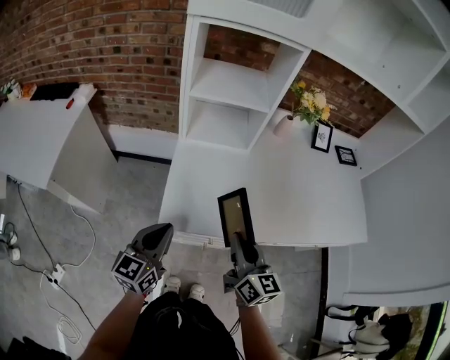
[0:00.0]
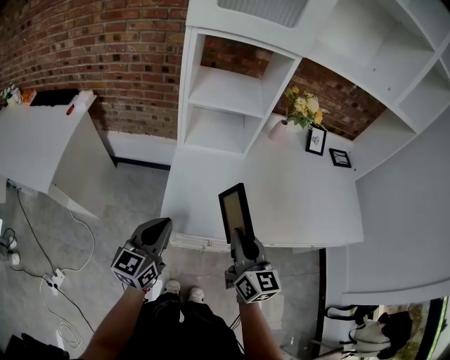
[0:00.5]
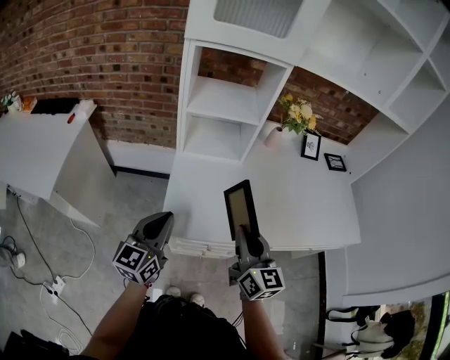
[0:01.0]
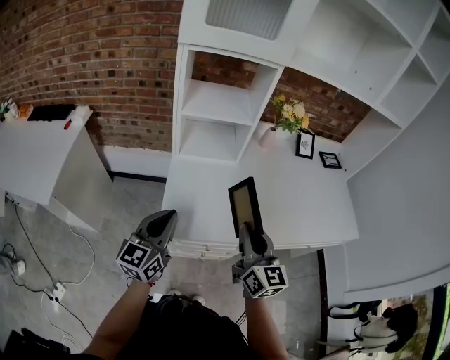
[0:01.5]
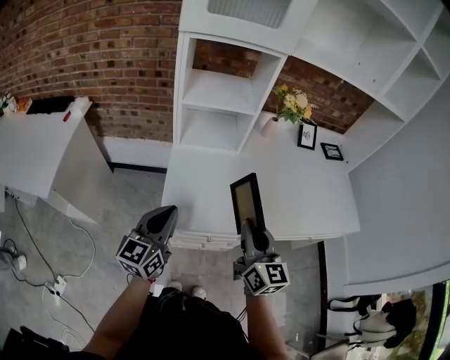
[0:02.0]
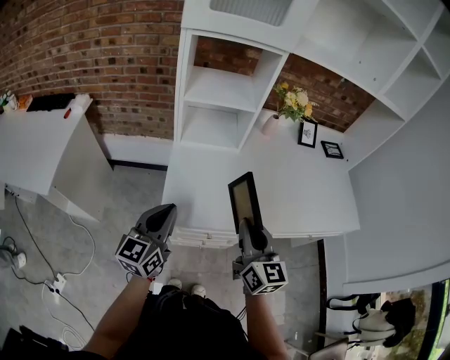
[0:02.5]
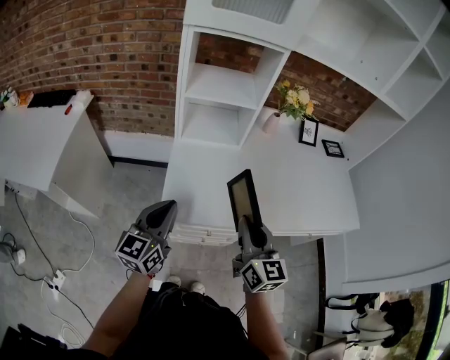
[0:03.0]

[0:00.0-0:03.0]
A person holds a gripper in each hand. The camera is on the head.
0:00.0 to 0:01.5: Both grippers move upward, approximately 5 cm.
0:01.5 to 0:03.0: The grippers move only a little.

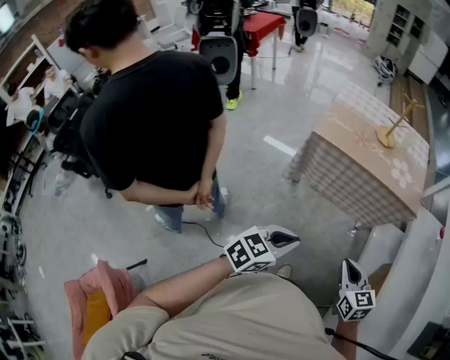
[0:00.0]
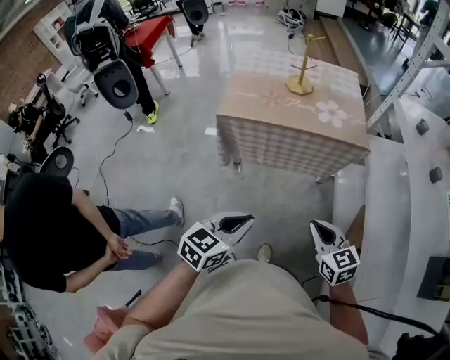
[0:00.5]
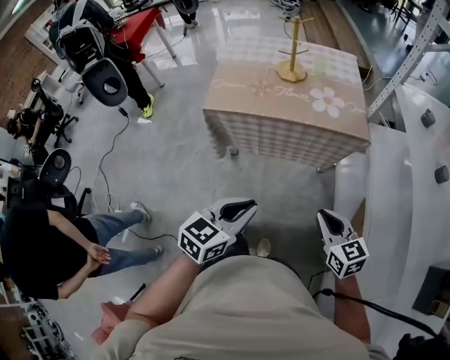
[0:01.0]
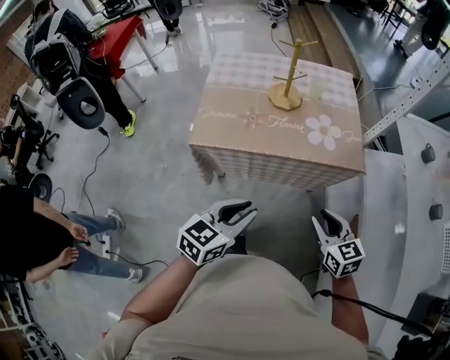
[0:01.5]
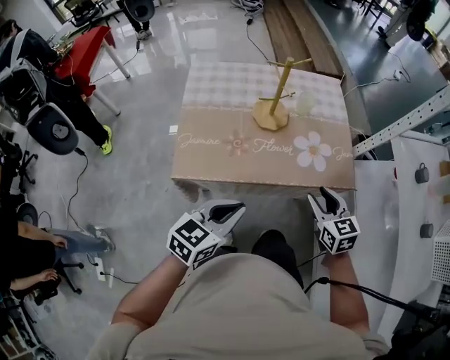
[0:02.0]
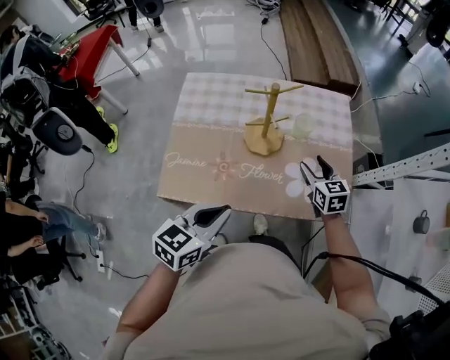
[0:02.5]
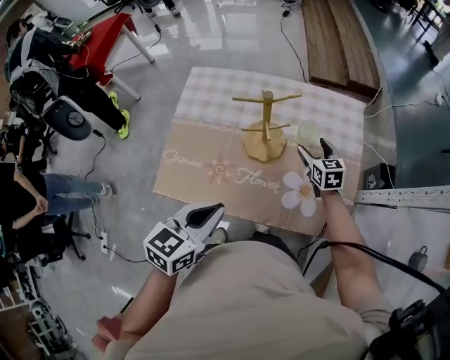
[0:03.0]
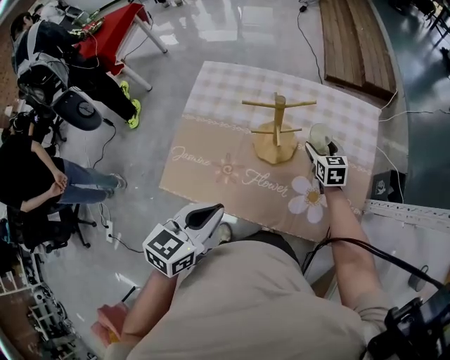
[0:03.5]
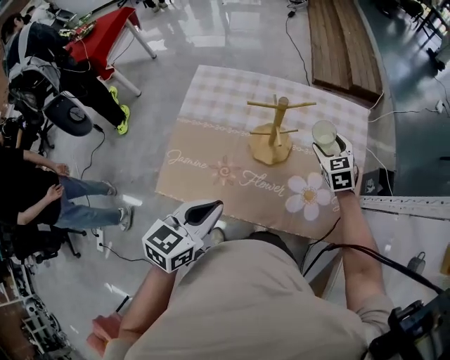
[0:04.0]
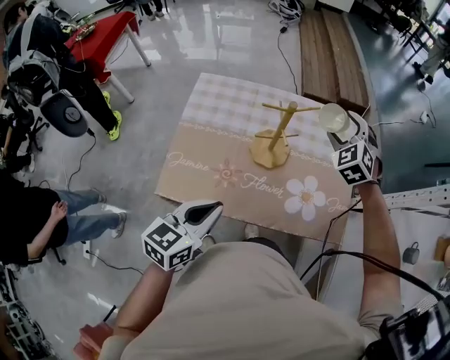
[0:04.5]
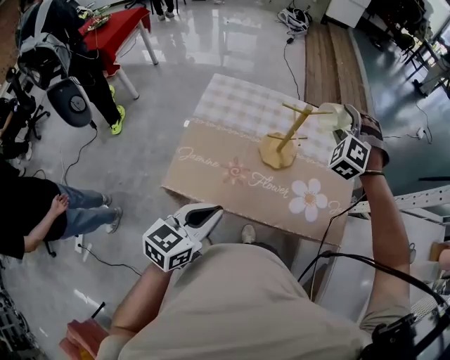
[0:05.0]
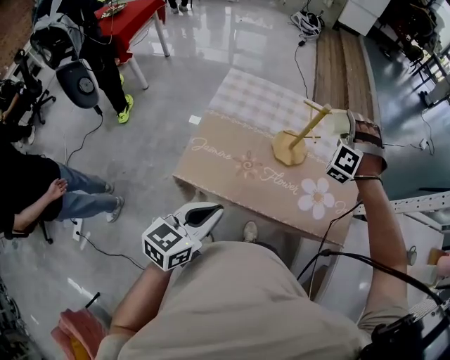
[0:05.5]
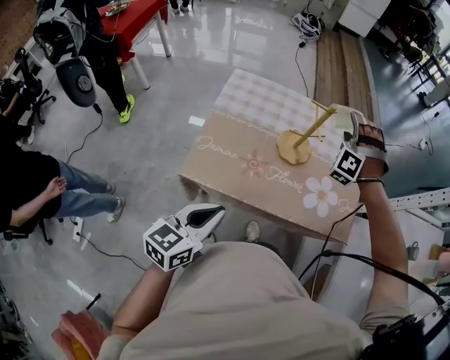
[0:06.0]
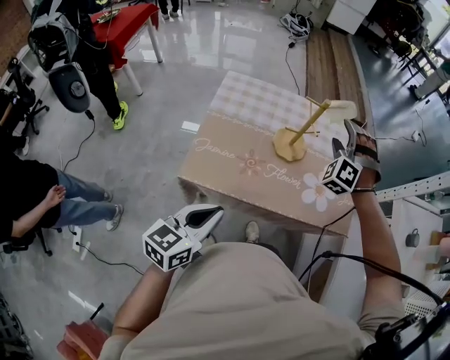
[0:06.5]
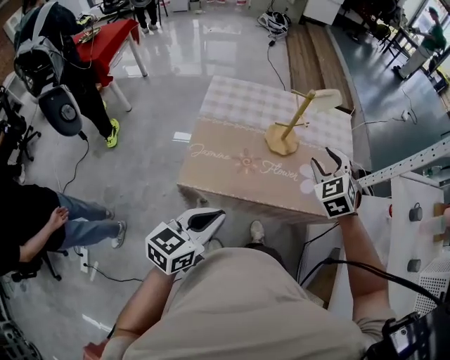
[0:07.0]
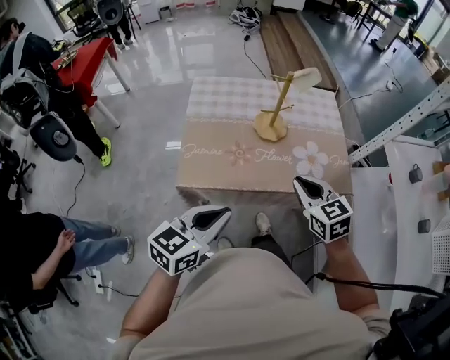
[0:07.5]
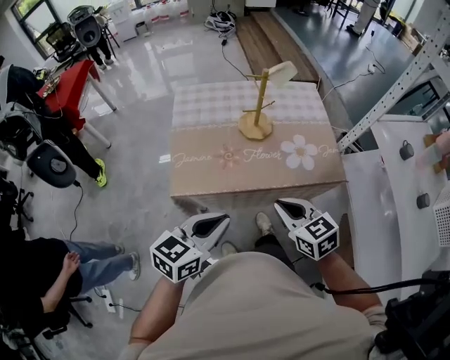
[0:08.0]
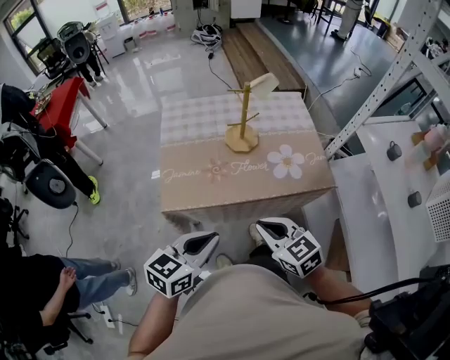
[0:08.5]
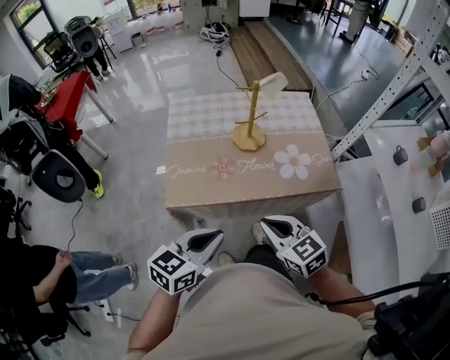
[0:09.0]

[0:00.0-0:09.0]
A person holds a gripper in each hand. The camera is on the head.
0:00.0 to 0:02.0: Both grippers are carried forward, about 50 cm. The right gripper opens up.
0:02.0 to 0:04.5: The right gripper heads forward, covering some 40 cm, twists approximately 50 degrees counterclockwise, seen from behind, and opens its fingers, while the left gripper moves forward, approximately 15 cm.
0:04.5 to 0:07.0: The left gripper travels backward by roughly 15 cm. Meanwhile the right gripper moves backward, approximately 25 cm.
0:07.0 to 0:09.0: The left gripper ends up some 5 cm from where it was, while the right gripper heads backward, covering roughly 25 cm, rotates about 40 degrees, and closes.

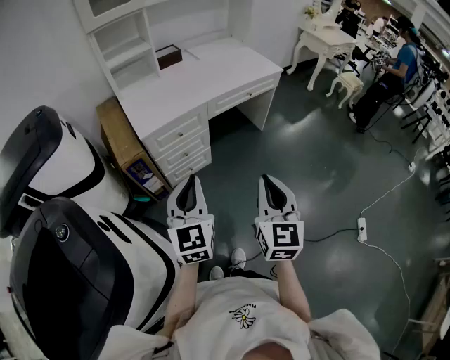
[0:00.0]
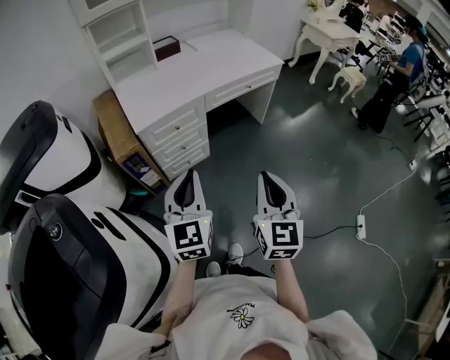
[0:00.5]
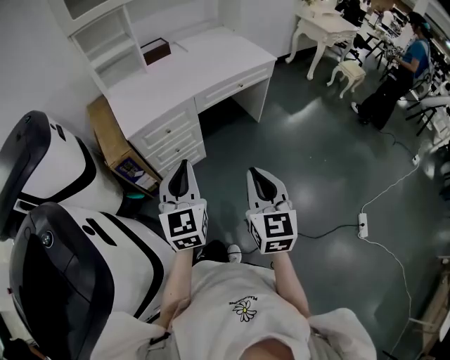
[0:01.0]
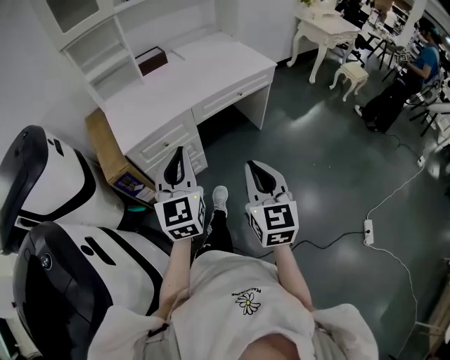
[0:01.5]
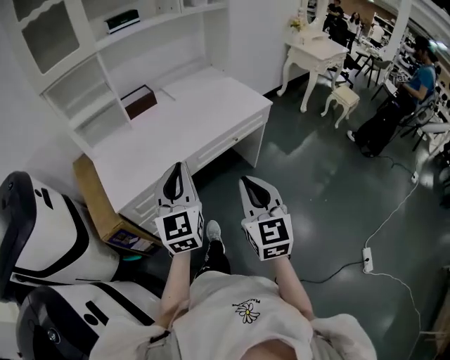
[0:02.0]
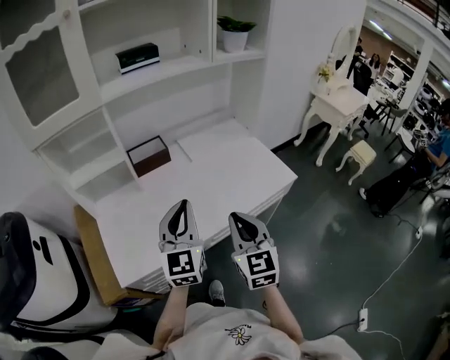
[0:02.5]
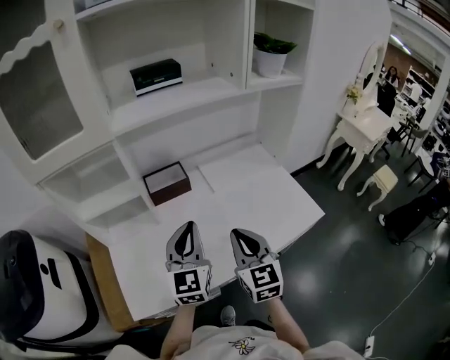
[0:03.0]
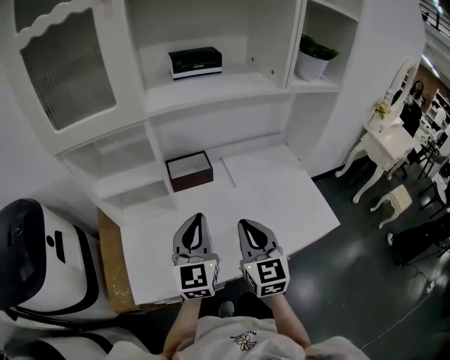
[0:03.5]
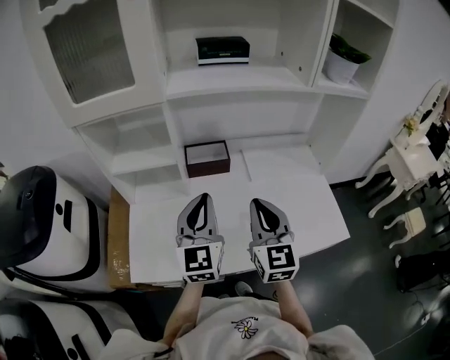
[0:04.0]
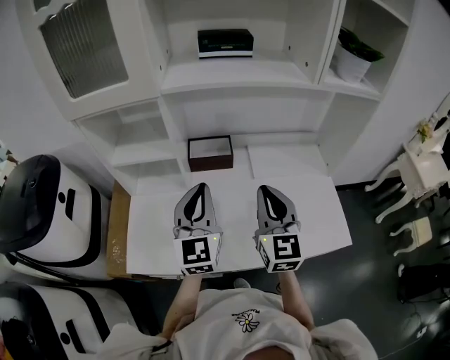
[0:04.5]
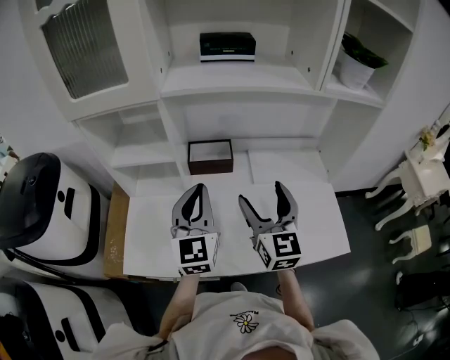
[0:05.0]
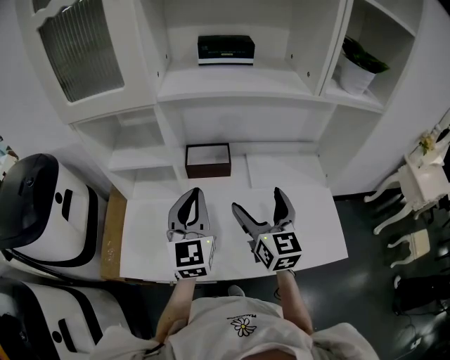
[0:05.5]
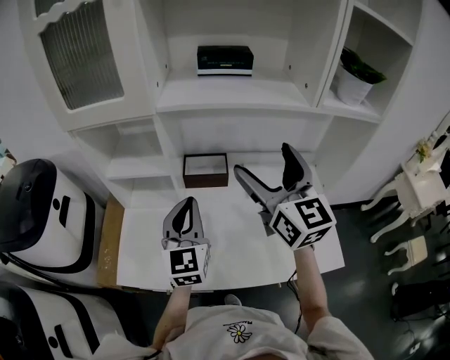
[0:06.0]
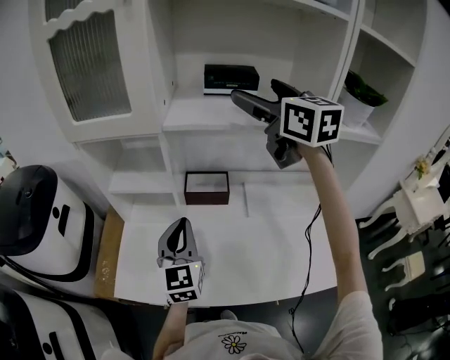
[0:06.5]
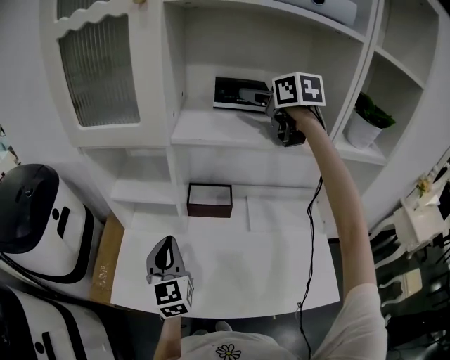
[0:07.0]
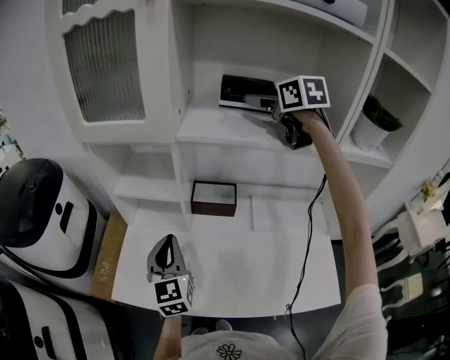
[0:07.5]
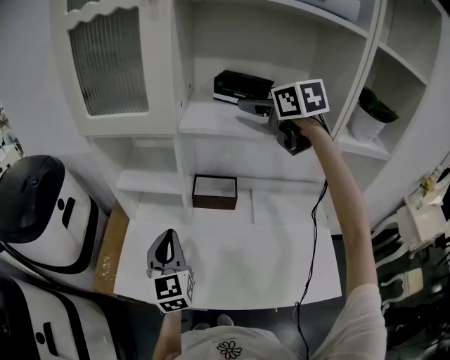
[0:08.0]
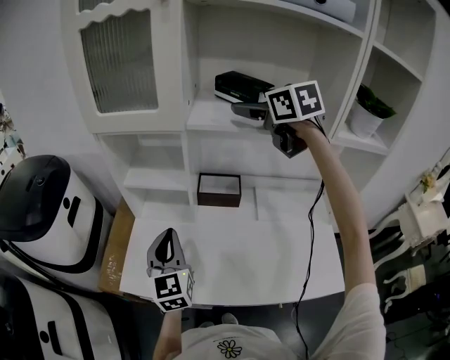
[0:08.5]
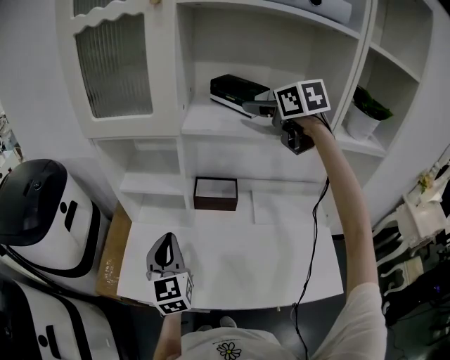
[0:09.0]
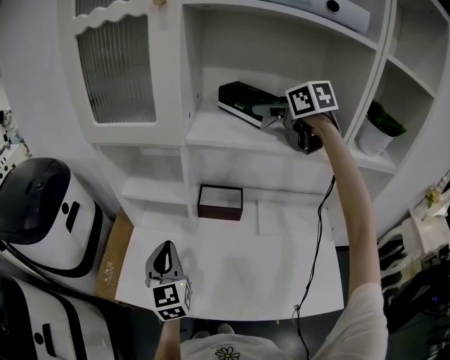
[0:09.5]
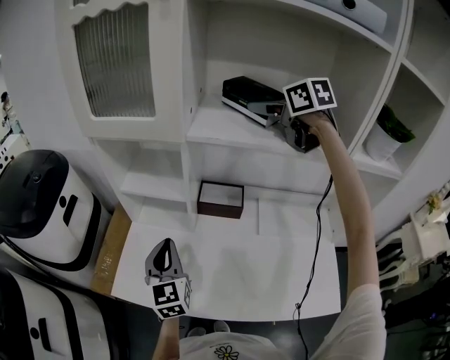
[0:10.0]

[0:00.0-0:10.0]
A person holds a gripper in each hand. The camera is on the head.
0:00.0 to 0:02.0: Both grippers travel together forward, about 30 cm.
0:02.0 to 0:04.0: The grippers both shift forward by approximately 40 cm. The left gripper swivels about 20 degrees. Meanwhile the right gripper swivels about 20 degrees.
0:04.0 to 0:06.0: The right gripper moves upward and forward, some 15 cm, changes its angle by approximately 20 degrees, and opens up.
0:06.0 to 0:08.0: The left gripper travels to the left by about 10 cm. The right gripper travels forward and upward by approximately 25 cm, and rotates roughly 30 degrees.
0:08.0 to 0:10.0: The right gripper shifts about 5 cm forward.

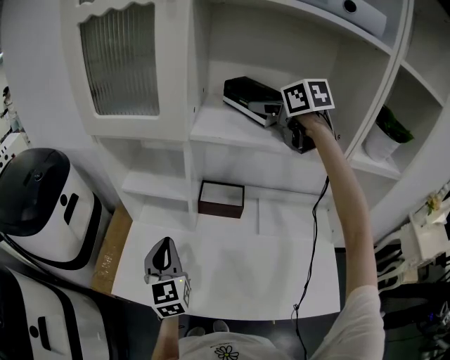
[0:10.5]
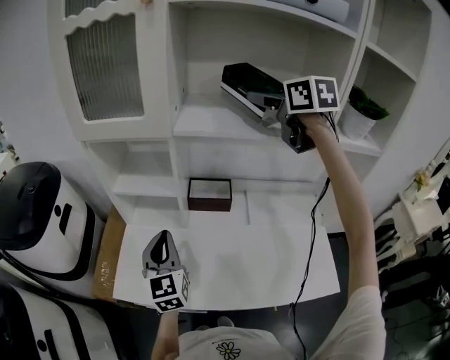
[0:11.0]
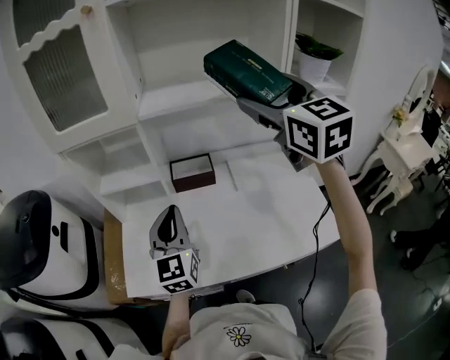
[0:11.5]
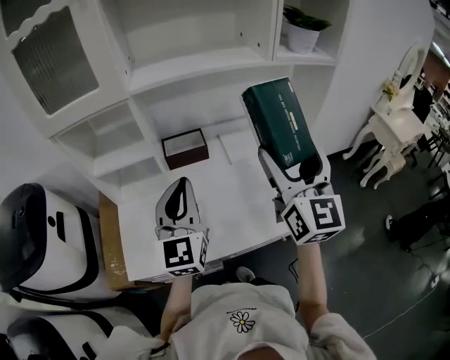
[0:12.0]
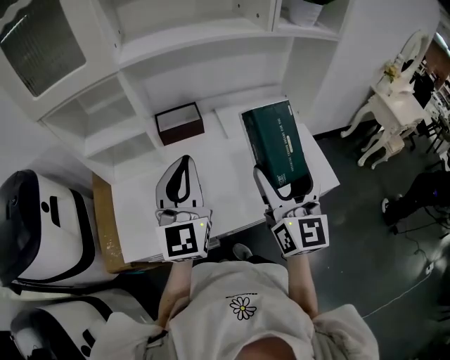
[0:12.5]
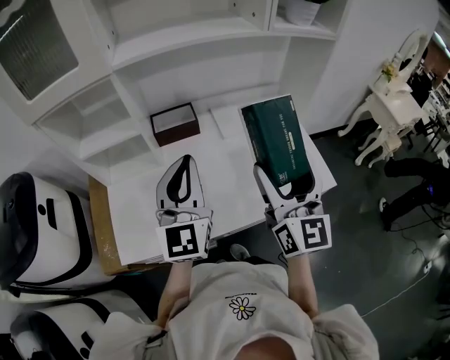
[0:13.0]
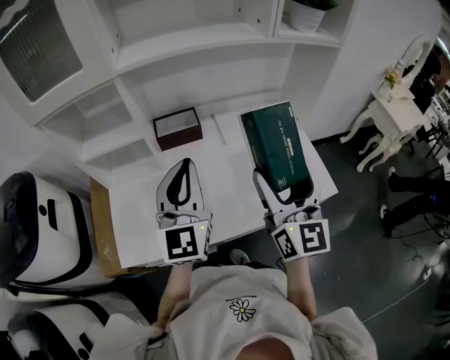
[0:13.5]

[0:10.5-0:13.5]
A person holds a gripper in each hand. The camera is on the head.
0:10.5 to 0:12.0: The left gripper shifts by roughly 15 cm, and turns by roughly 30 degrees; the right gripper shifts by approximately 40 cm, and angles its fingers upward, by about 40 degrees.
0:12.0 to 0:13.5: The right gripper is displaced downward by roughly 5 cm.

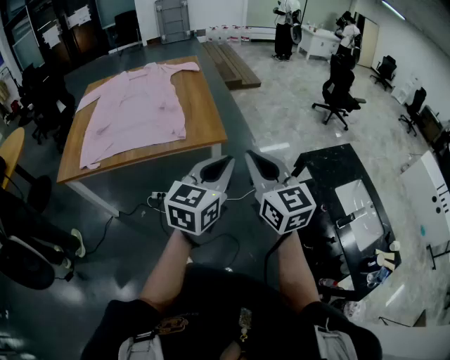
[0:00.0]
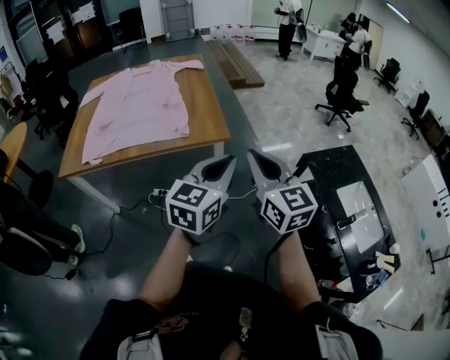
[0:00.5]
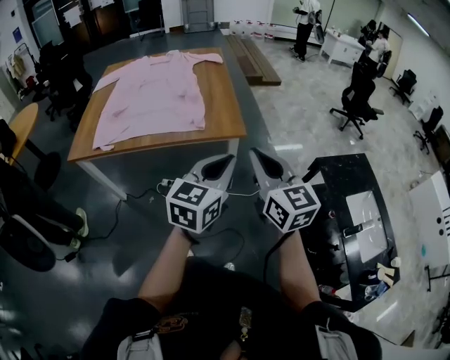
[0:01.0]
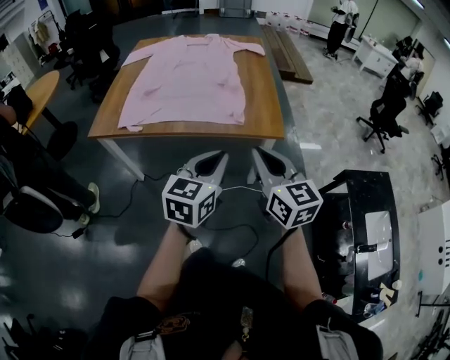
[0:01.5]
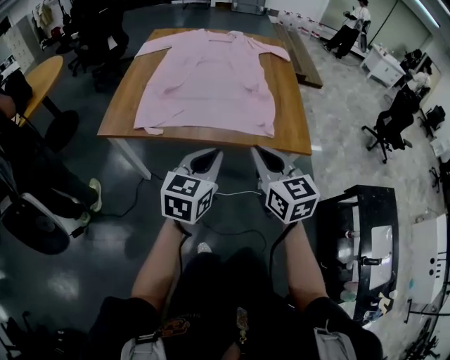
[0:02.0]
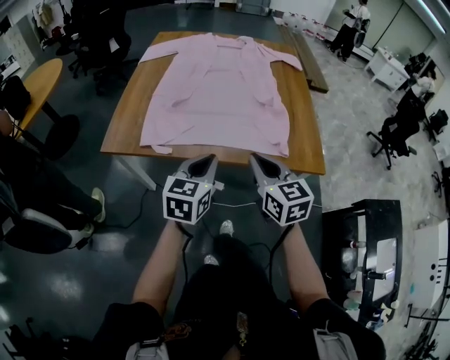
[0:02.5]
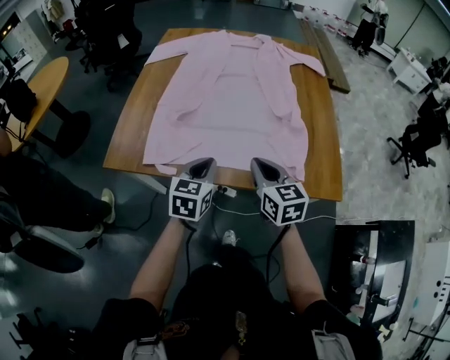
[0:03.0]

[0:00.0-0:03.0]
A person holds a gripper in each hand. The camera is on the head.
0:00.0 to 0:01.5: Both grippers travel together to the left, some 20 cm.
0:01.5 to 0:03.0: The two grippers go some 40 cm forward, to the left and downward.
